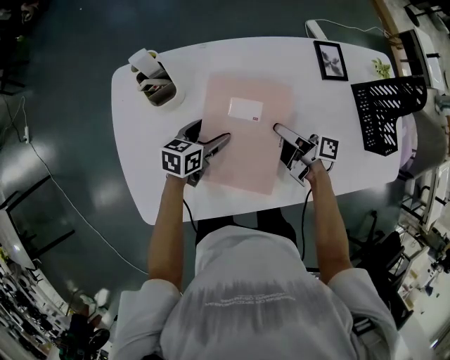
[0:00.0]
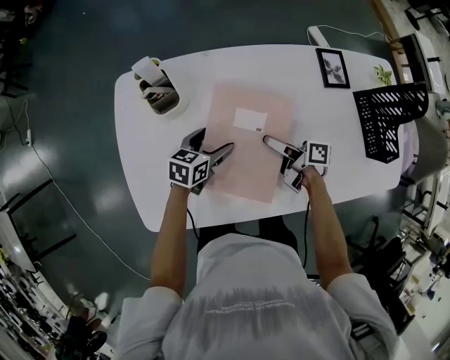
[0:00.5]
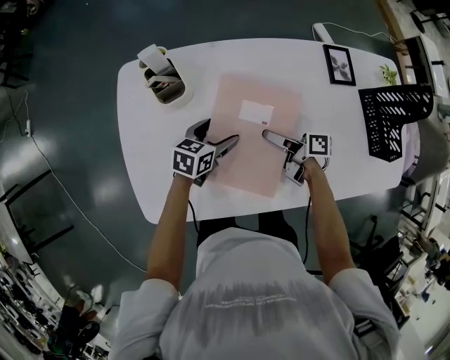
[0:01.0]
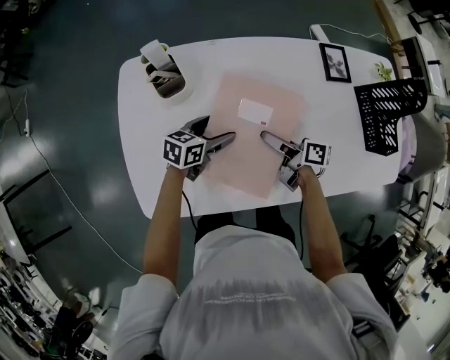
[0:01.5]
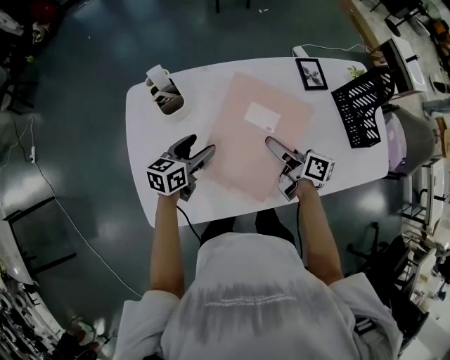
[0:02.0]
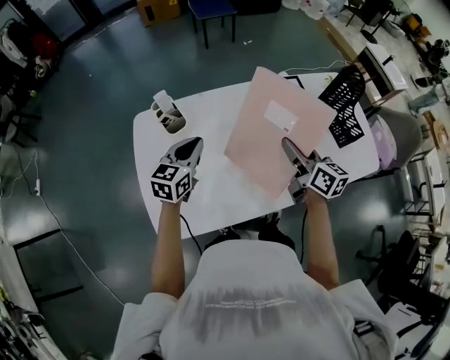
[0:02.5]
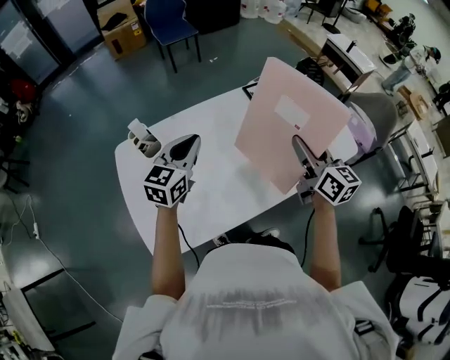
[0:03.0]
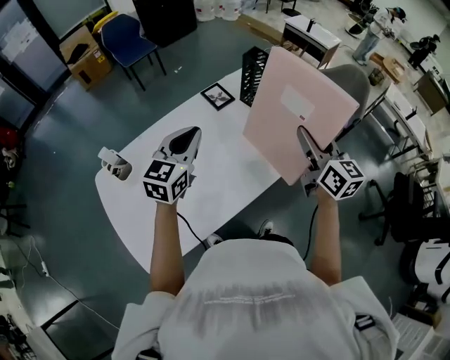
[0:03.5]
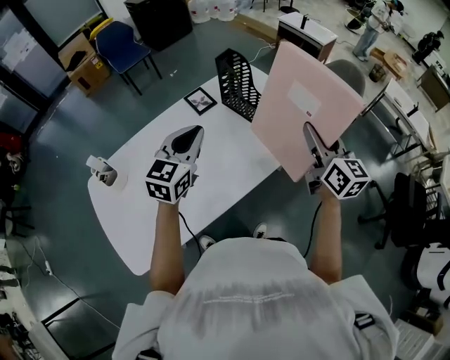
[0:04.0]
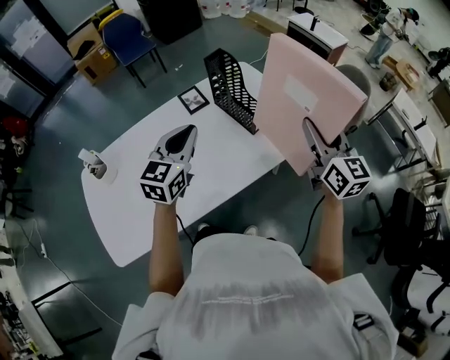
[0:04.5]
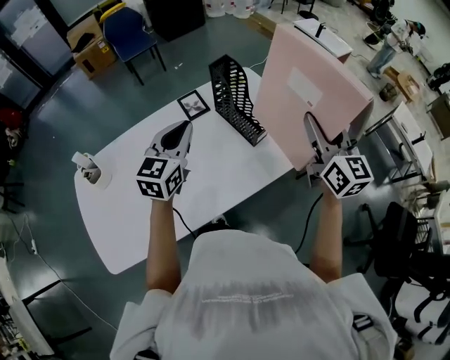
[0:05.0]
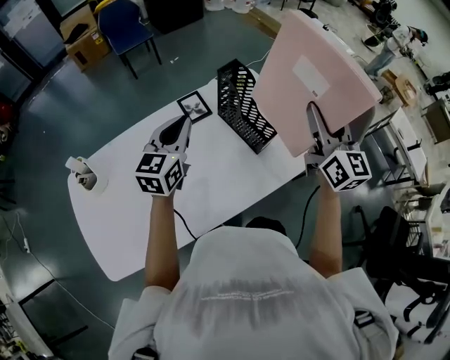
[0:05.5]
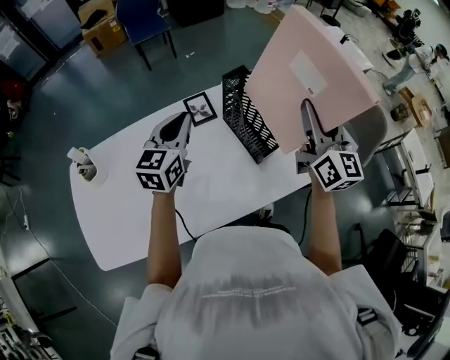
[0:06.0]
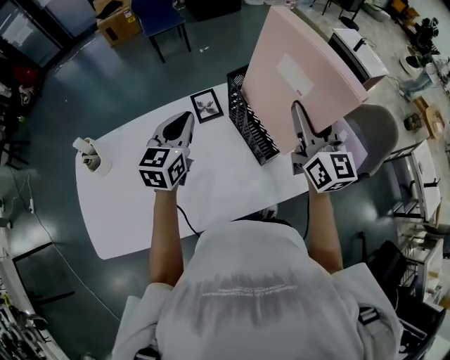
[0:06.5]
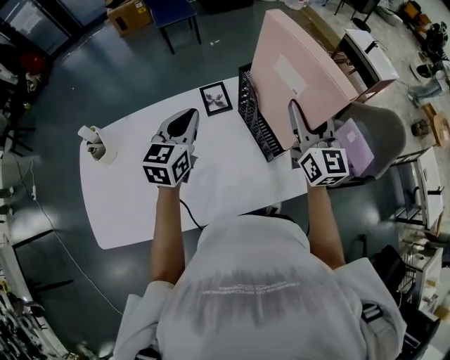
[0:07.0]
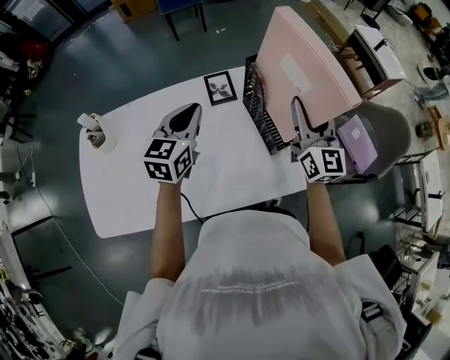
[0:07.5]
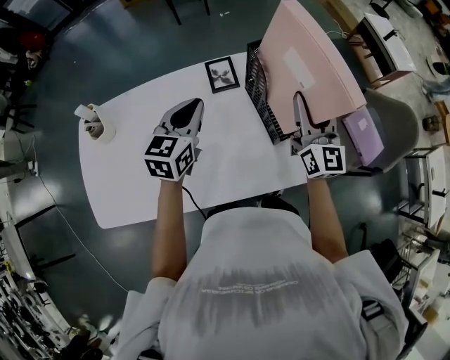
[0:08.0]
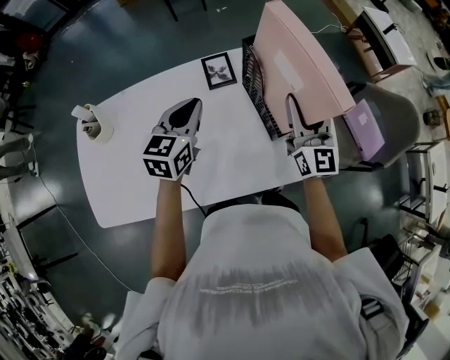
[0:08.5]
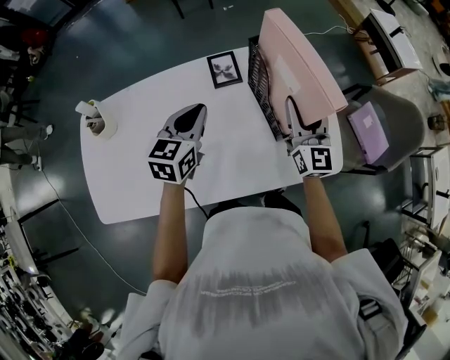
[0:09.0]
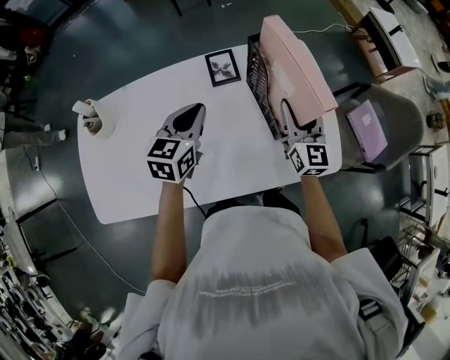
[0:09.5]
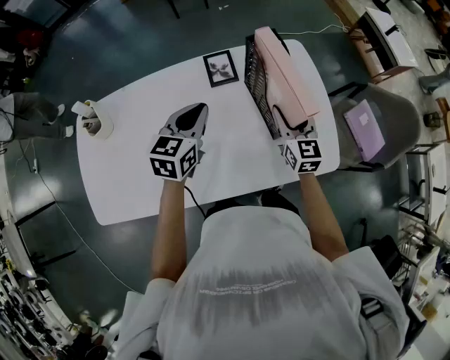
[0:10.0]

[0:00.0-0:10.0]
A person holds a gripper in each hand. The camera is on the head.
0:00.0 to 0:02.0: Both grippers move upward, some 10 cm. The right gripper changes its angle by about 20 degrees.
0:02.0 to 0:04.0: The right gripper ends up some 50 cm from where it was, and swivels about 70 degrees. Meanwhile the left gripper changes place by approximately 40 cm, twists roughly 40 degrees clockwise, seen from behind, and closes its fingers.
0:04.0 to 0:06.0: Both grippers travel together forward, about 20 cm. The left gripper changes its angle by roughly 20 degrees.
0:06.0 to 0:08.0: The right gripper moves downward, roughly 10 cm. The left gripper moves downward, roughly 5 cm.
0:08.0 to 0:10.0: The right gripper goes approximately 15 cm downward, and changes its angle by approximately 20 degrees.

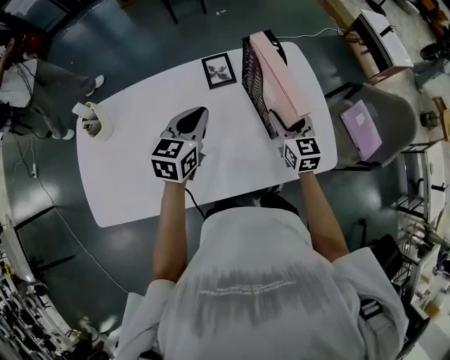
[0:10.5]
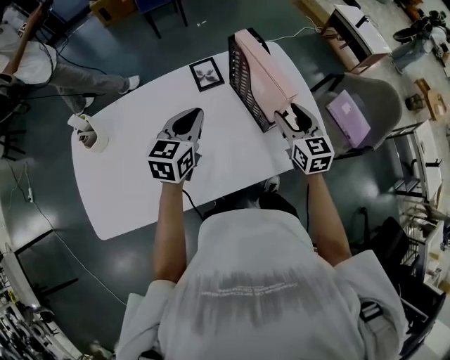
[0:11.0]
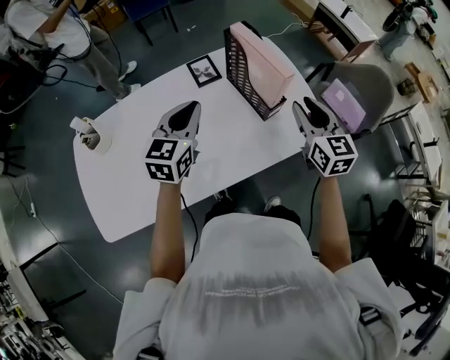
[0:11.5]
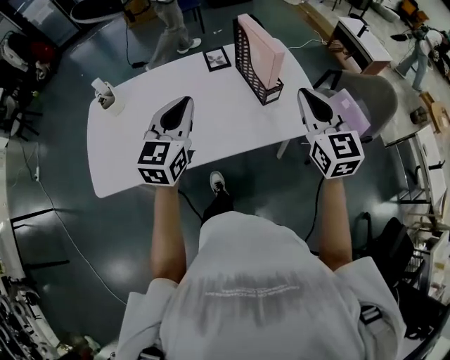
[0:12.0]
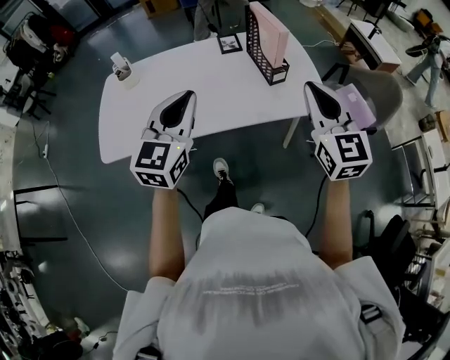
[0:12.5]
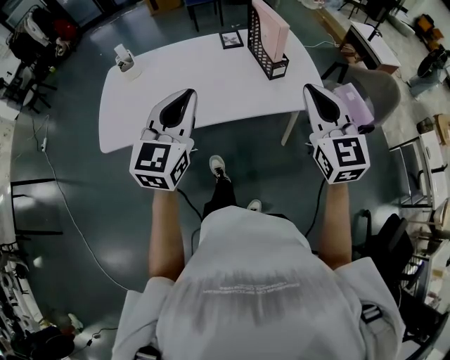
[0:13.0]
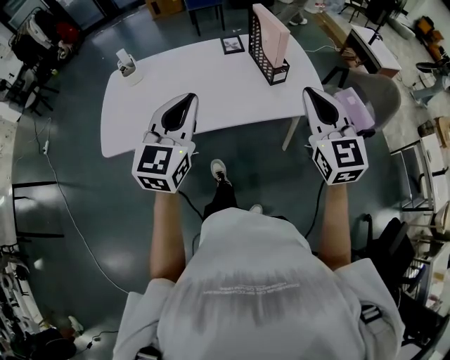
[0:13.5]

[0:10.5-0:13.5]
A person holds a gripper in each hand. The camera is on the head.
0:10.5 to 0:12.0: The right gripper moves upward and backward, some 30 cm, and closes, while the left gripper shifts approximately 25 cm backward and upward, and turns by some 20 degrees.
0:12.0 to 0:13.5: Both grippers move backward, approximately 15 cm.

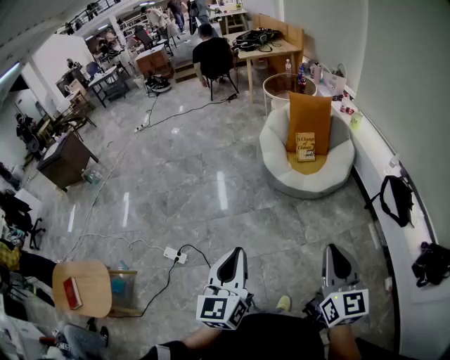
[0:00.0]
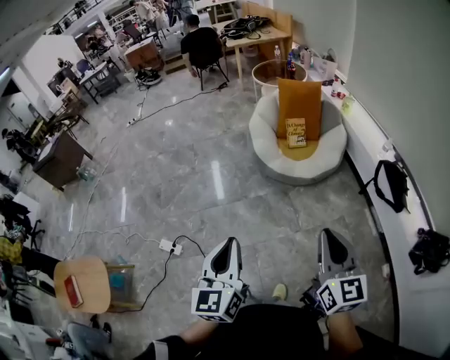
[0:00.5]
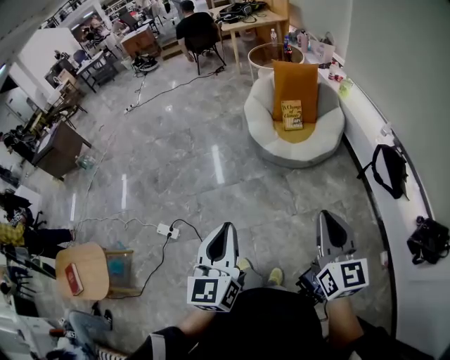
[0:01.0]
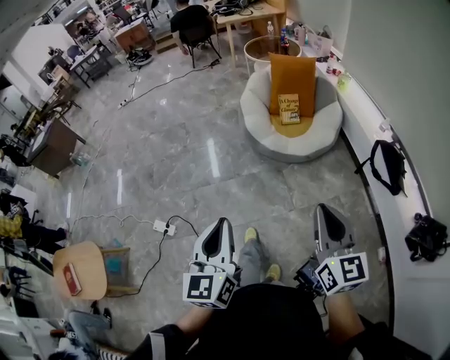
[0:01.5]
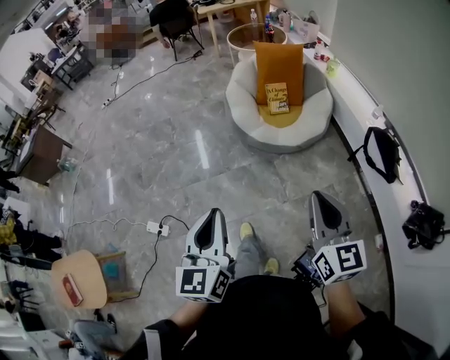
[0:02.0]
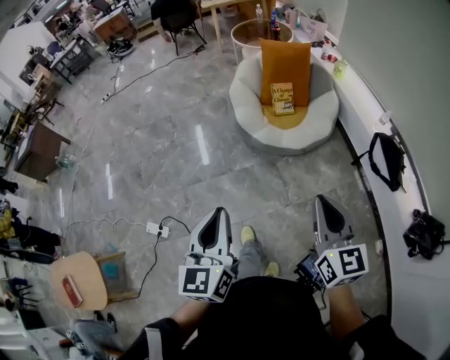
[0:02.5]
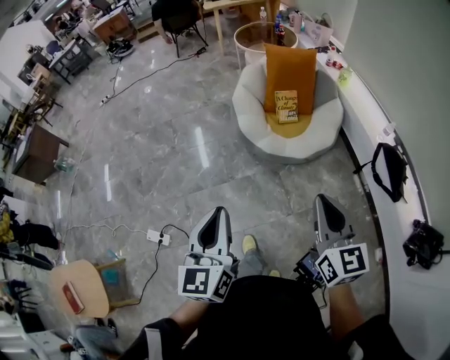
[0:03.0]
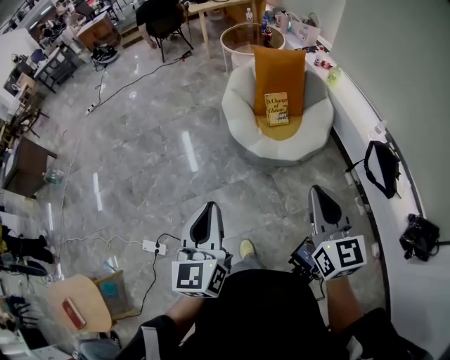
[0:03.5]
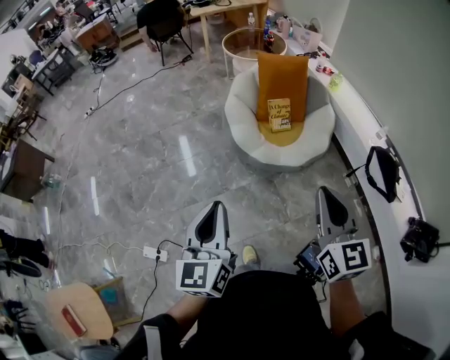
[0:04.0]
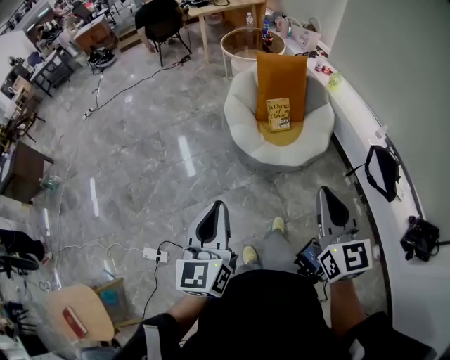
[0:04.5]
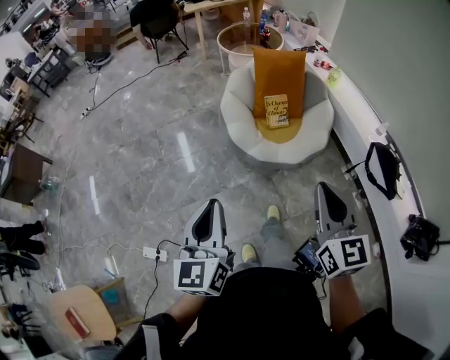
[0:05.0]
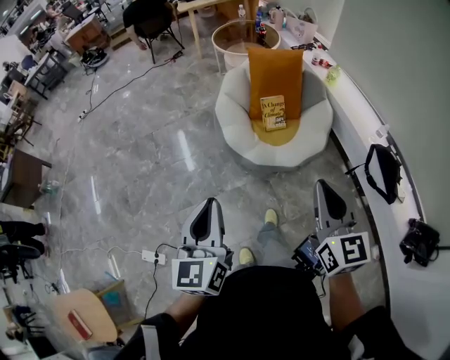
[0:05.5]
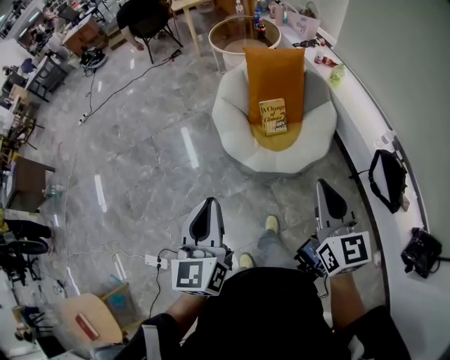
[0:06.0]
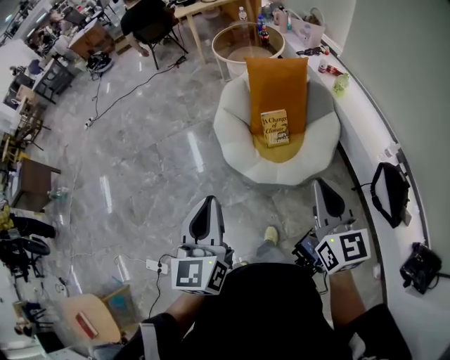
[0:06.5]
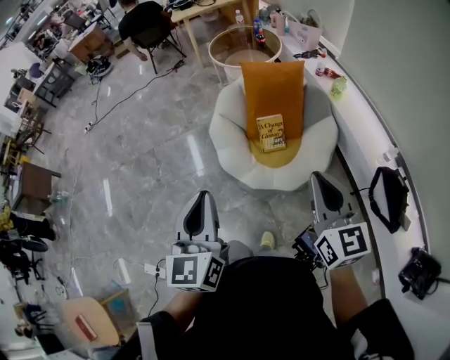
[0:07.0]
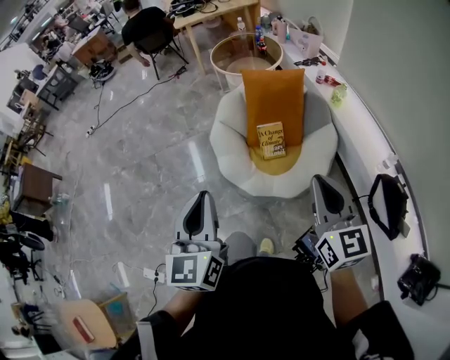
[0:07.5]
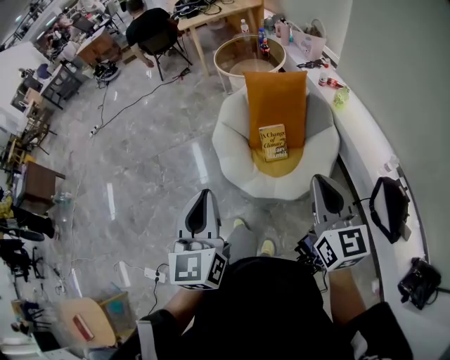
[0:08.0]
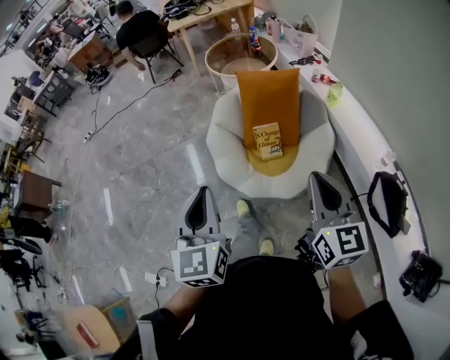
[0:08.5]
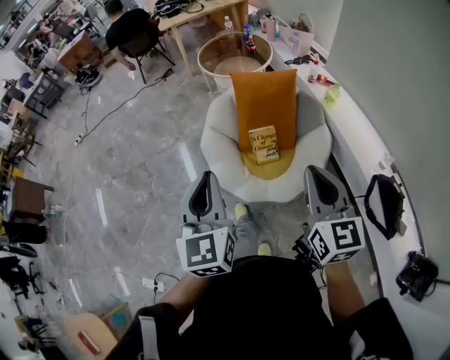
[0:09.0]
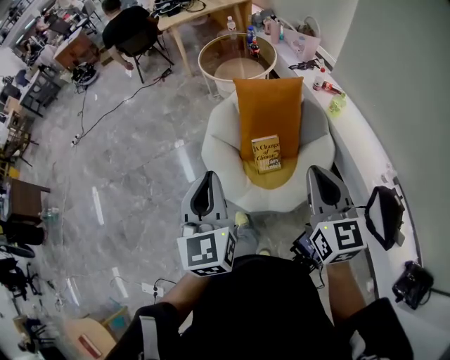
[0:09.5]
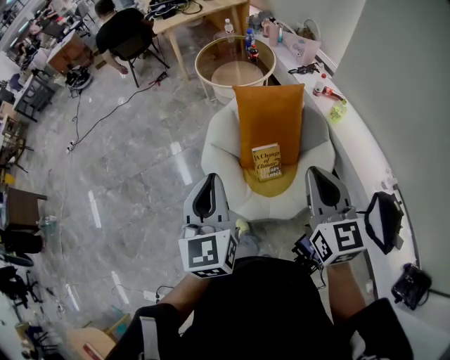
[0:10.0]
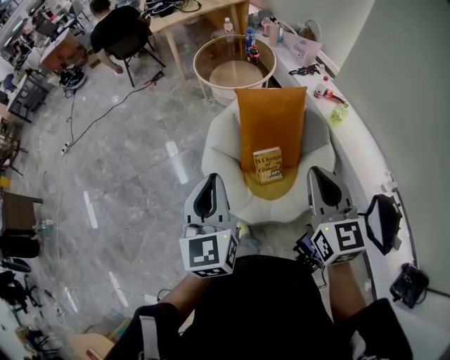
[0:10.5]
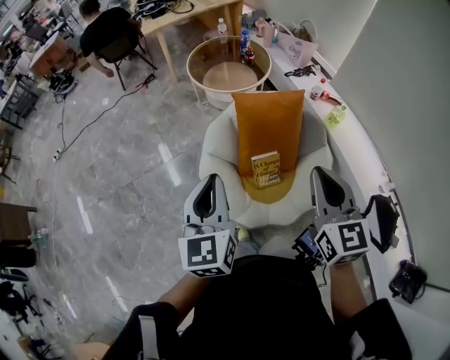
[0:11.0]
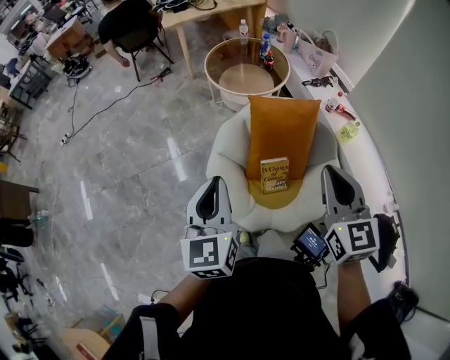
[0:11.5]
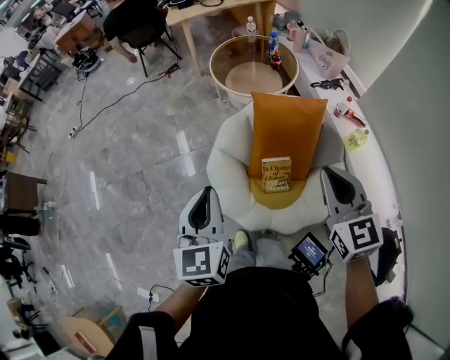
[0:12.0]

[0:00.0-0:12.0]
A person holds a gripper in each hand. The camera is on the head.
0:00.0 to 0:02.0: Both grippers travel together forward and to the right, about 10 cm.
0:02.0 to 0:04.0: The two grippers go some 20 cm forward.
0:04.0 to 0:06.0: Both grippers travel together forward and to the right, approximately 20 cm.
0:06.0 to 0:08.0: The grippers both shift forward and to the right by roughly 15 cm.
0:08.0 to 0:10.0: The two grippers go some 25 cm forward.
0:10.0 to 0:12.0: Both grippers move forward, some 15 cm.

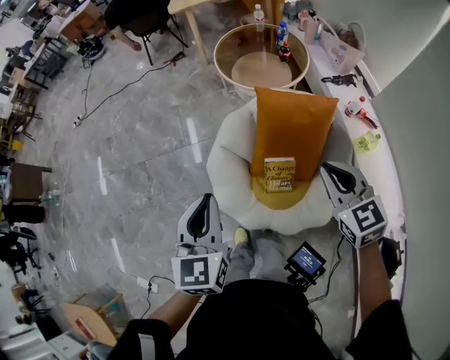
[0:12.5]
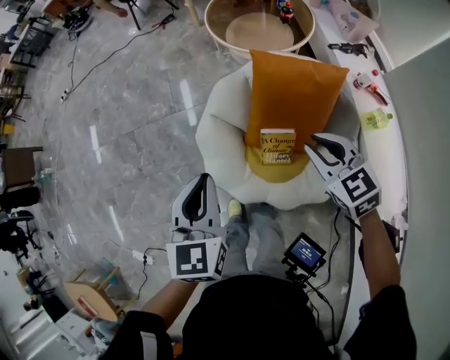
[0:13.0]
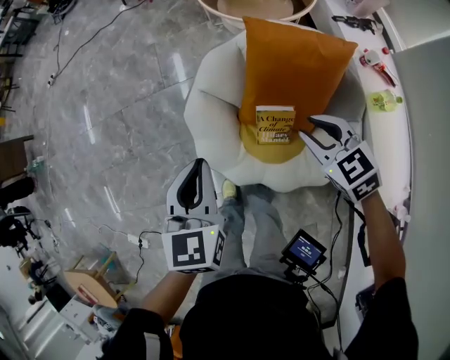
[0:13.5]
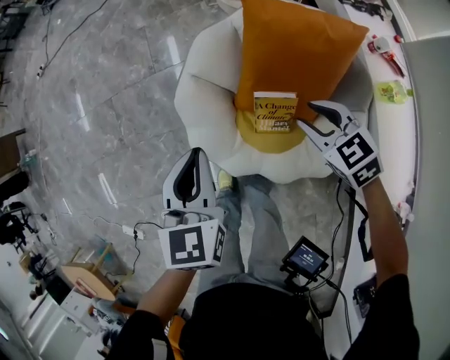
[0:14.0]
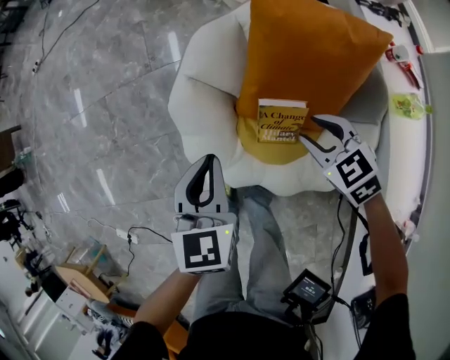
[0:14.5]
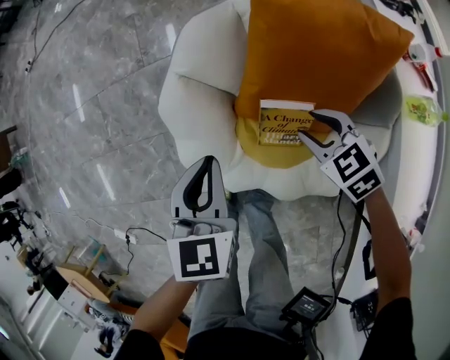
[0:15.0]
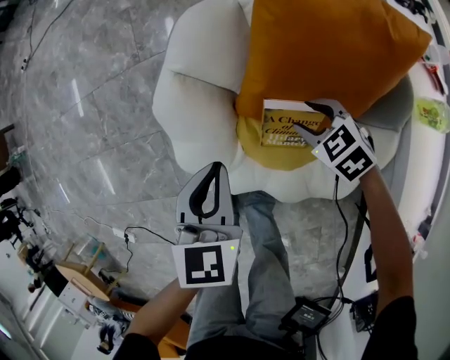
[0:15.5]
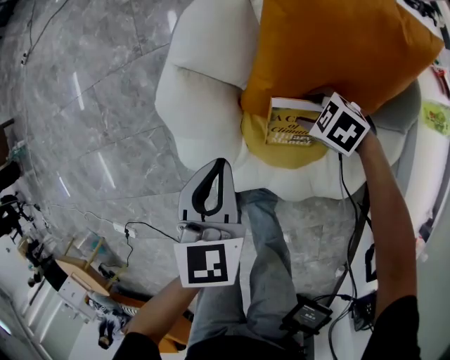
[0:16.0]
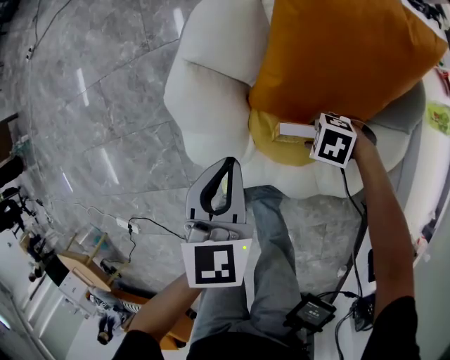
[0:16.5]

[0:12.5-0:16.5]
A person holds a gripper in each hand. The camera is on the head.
0:12.5 to 0:14.5: The grippers both shift downward by approximately 30 cm. The right gripper swivels about 30 degrees, and opens up.
0:14.5 to 0:16.5: The left gripper heads downward, covering some 10 cm. Meanwhile the right gripper is displaced downward by some 25 cm, and turns by approximately 50 degrees.
